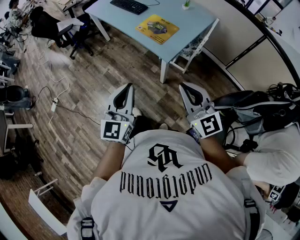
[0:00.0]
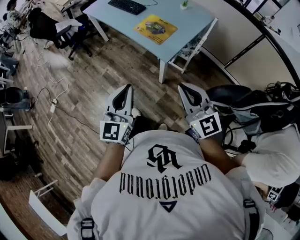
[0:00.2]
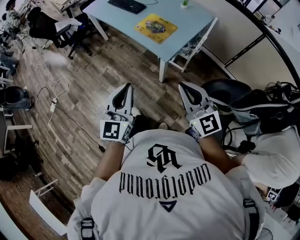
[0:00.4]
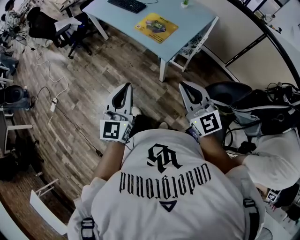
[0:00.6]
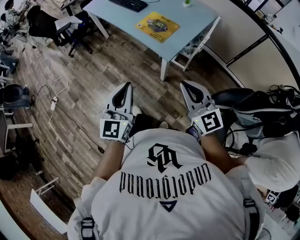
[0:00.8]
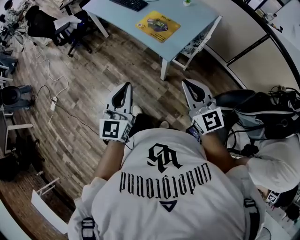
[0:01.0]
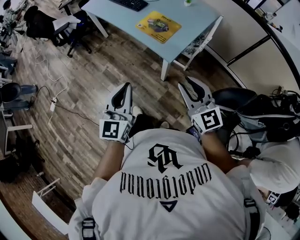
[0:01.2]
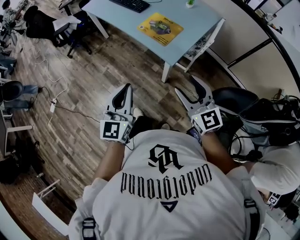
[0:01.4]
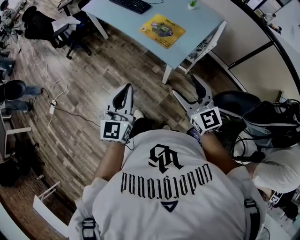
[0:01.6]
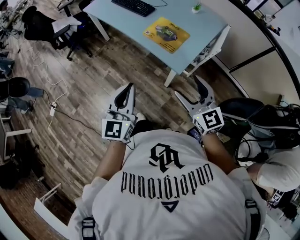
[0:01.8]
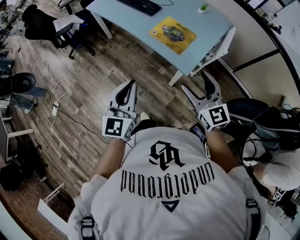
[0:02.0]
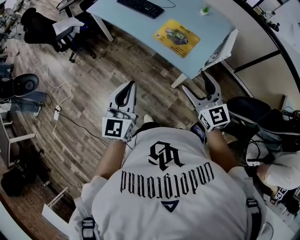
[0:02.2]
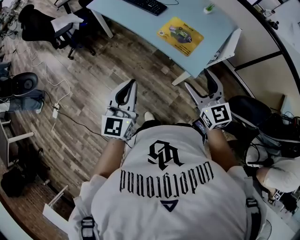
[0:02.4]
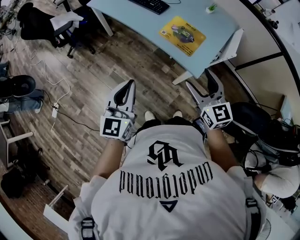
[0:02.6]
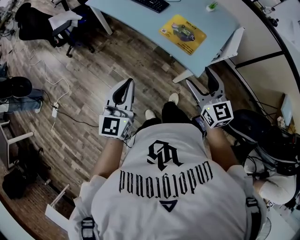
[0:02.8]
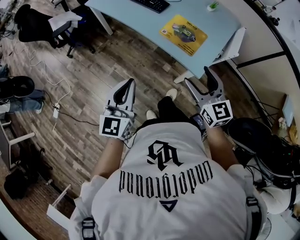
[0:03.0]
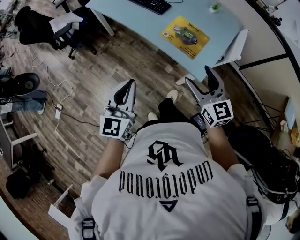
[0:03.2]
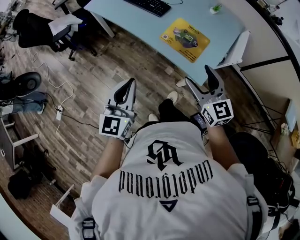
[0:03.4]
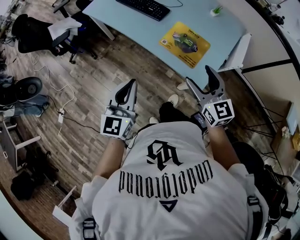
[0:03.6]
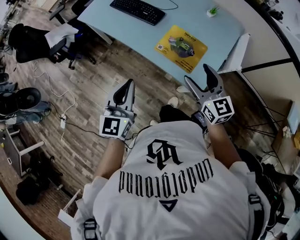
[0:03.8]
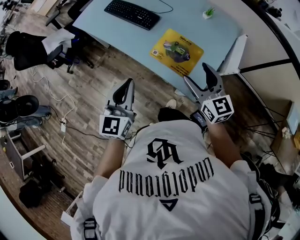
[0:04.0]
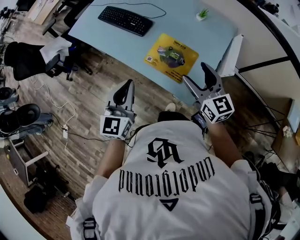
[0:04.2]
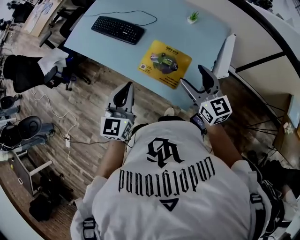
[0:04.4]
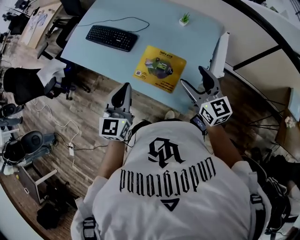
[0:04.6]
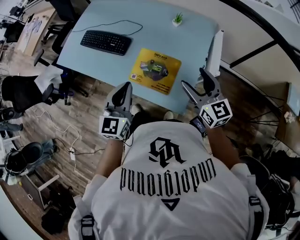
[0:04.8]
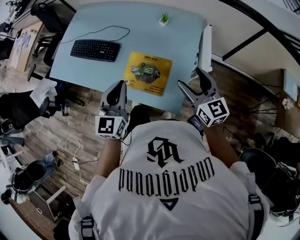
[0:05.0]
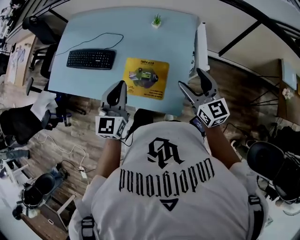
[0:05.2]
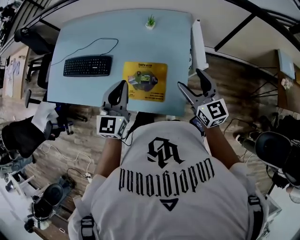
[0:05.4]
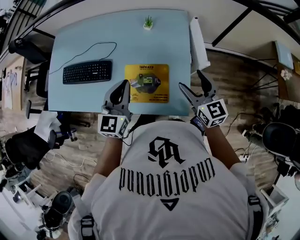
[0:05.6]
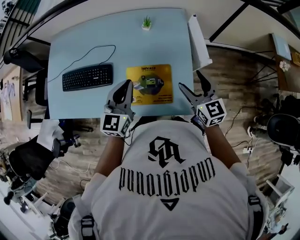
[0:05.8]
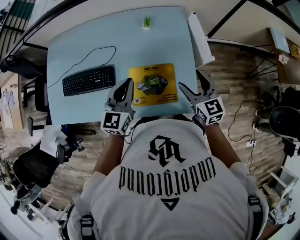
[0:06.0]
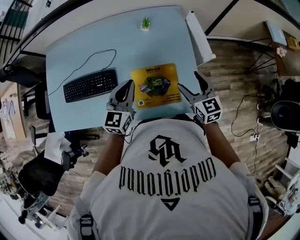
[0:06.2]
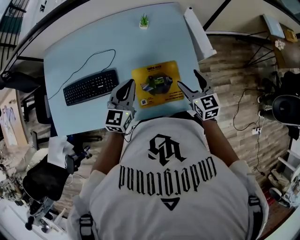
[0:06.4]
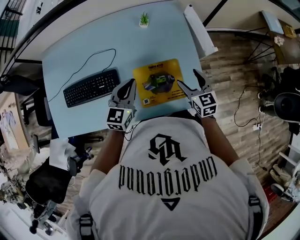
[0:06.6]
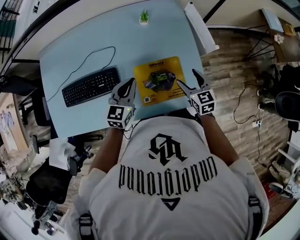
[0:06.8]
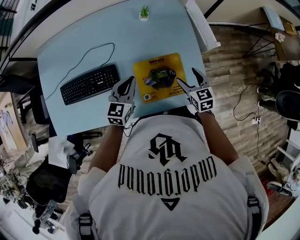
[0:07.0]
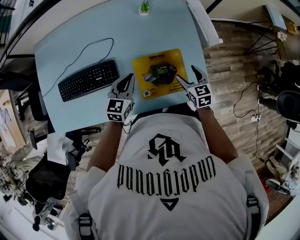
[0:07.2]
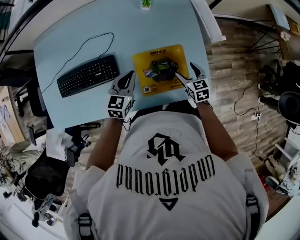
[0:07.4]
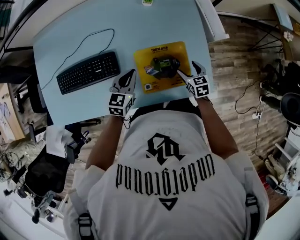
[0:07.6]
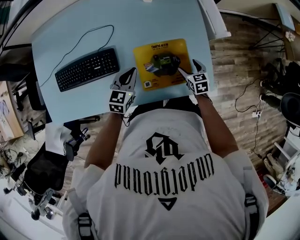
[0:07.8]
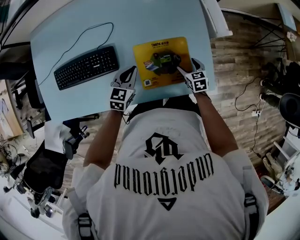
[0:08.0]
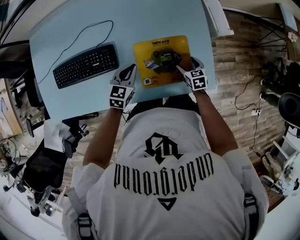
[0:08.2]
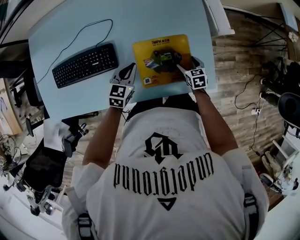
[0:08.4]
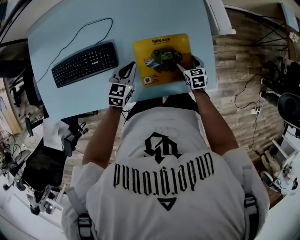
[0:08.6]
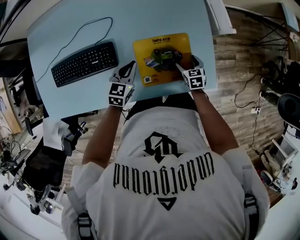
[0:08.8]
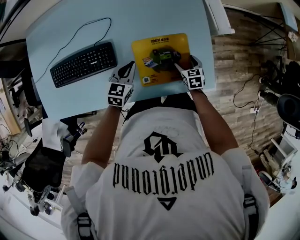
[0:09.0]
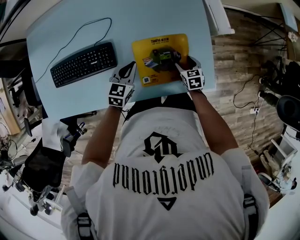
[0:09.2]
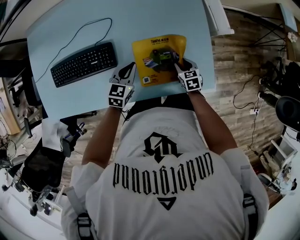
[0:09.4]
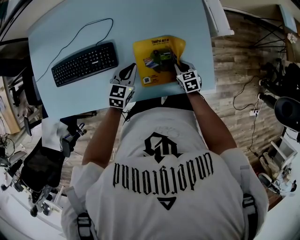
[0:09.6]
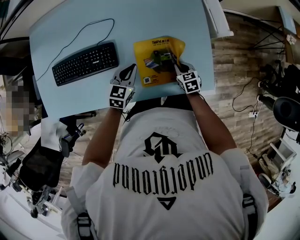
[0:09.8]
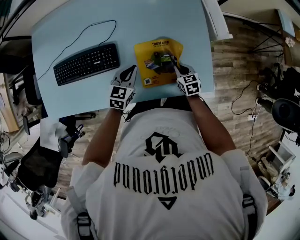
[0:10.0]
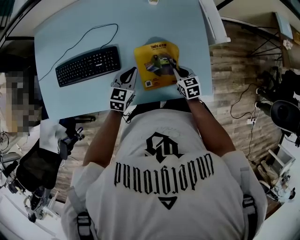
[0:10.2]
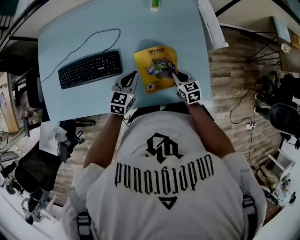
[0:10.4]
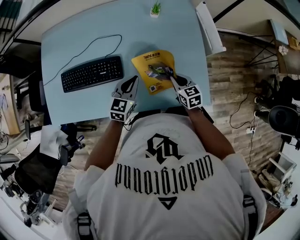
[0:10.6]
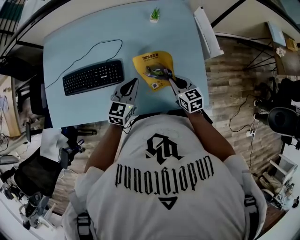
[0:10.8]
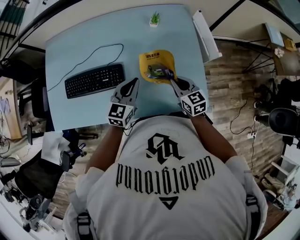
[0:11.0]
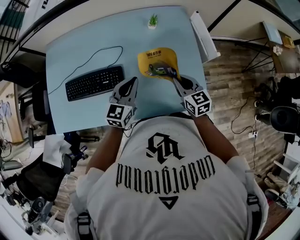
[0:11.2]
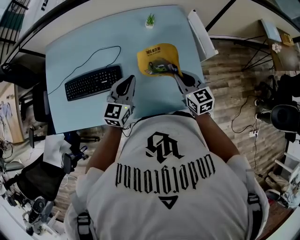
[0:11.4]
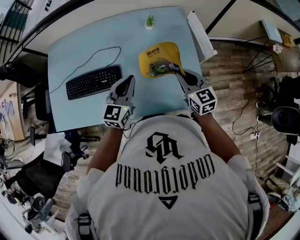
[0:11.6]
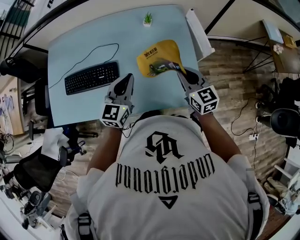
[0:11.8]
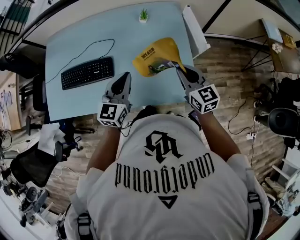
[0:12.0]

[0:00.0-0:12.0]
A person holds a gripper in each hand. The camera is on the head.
0:00.0 to 0:01.6: The left gripper travels forward by about 10 cm. Meanwhile the right gripper moves forward and downward, roughly 15 cm, and opens its fingers.
0:01.6 to 0:03.0: The left gripper travels to the left and forward by about 20 cm. Meanwhile the right gripper goes roughly 20 cm forward and to the left.
0:03.0 to 0:04.4: Both grippers move forward and to the right, about 30 cm.
0:04.4 to 0:06.0: The left gripper ends up roughly 25 cm from where it was, and changes its angle by some 40 degrees. Meanwhile the right gripper shifts by roughly 10 cm, and changes its angle by approximately 40 degrees.
0:06.0 to 0:07.6: Both grippers move downward, some 20 cm. The right gripper turns by about 30 degrees, while the left gripper swivels about 20 degrees.
0:07.6 to 0:09.0: The grippers both shift downward by roughly 5 cm.
0:09.0 to 0:10.4: The right gripper heads upward and to the left, covering approximately 10 cm, and closes its fingers. The left gripper shifts approximately 5 cm upward.
0:10.4 to 0:12.0: The two grippers go approximately 20 cm upward. The right gripper changes its angle by some 30 degrees; the left gripper changes its angle by some 20 degrees.

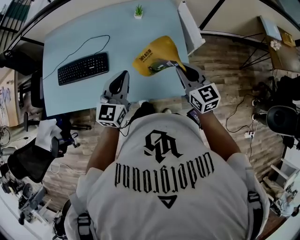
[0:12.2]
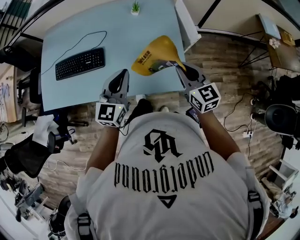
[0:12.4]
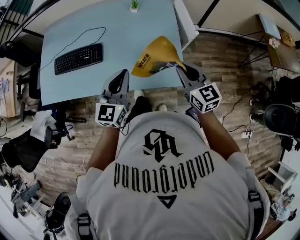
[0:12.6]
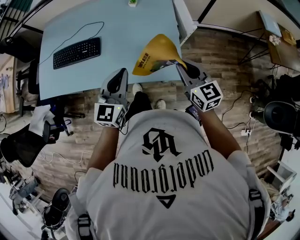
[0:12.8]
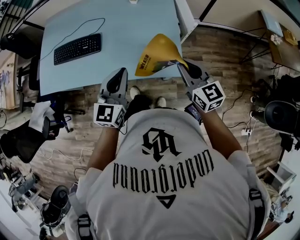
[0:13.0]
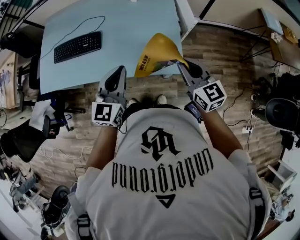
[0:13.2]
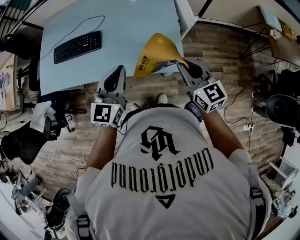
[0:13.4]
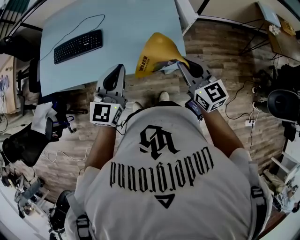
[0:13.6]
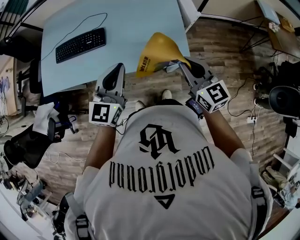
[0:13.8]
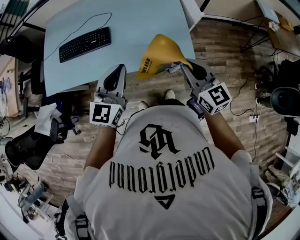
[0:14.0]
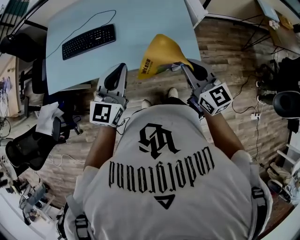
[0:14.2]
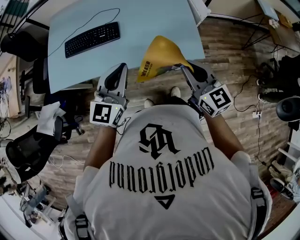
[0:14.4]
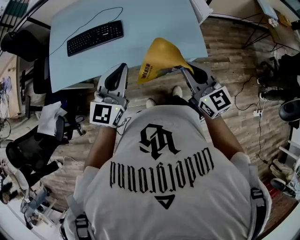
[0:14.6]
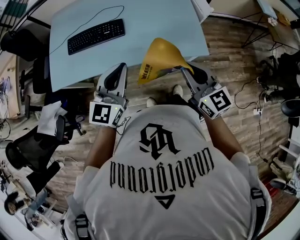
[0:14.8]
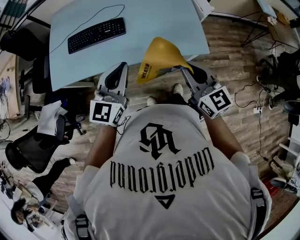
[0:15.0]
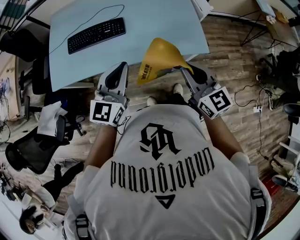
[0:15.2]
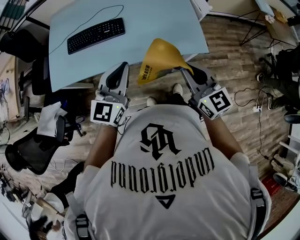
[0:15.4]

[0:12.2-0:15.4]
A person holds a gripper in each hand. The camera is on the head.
0:12.2 to 0:13.8: The grippers both shift backward by approximately 15 cm.
0:13.8 to 0:15.4: The two grippers go roughly 20 cm to the left and backward.

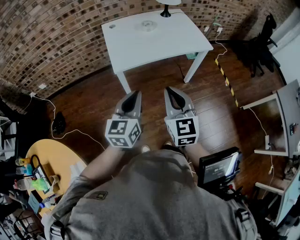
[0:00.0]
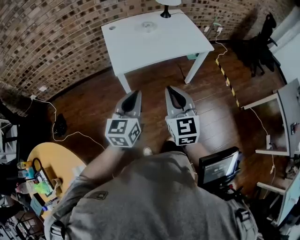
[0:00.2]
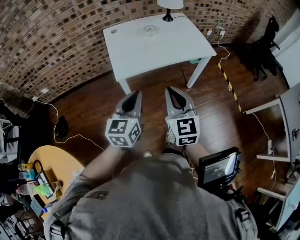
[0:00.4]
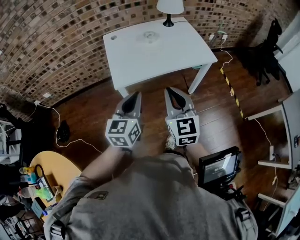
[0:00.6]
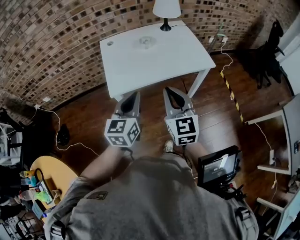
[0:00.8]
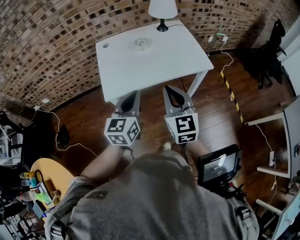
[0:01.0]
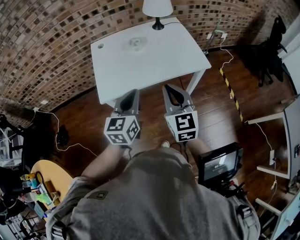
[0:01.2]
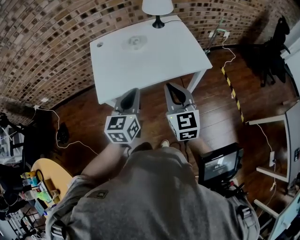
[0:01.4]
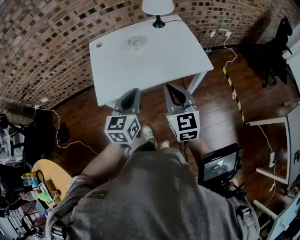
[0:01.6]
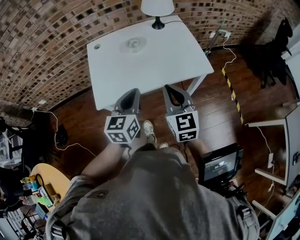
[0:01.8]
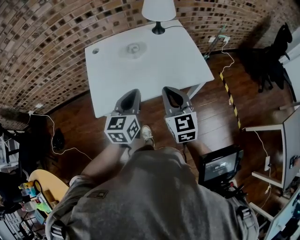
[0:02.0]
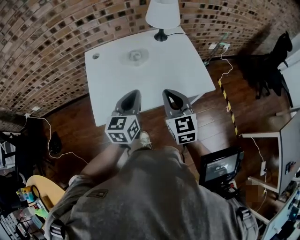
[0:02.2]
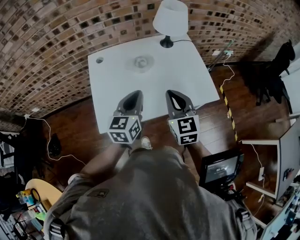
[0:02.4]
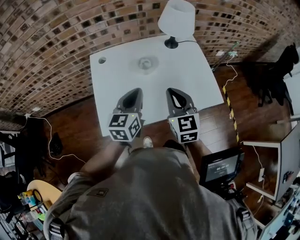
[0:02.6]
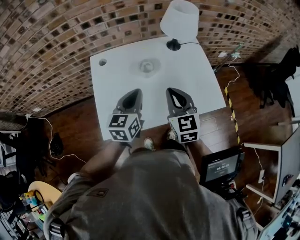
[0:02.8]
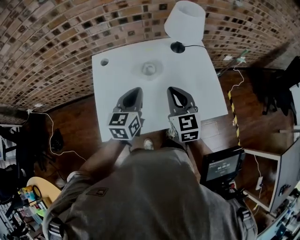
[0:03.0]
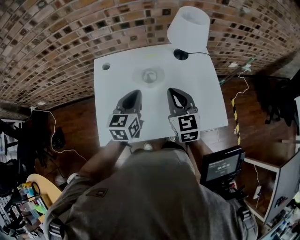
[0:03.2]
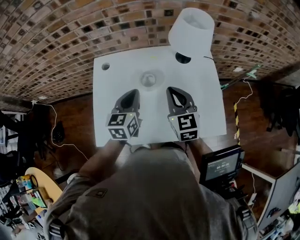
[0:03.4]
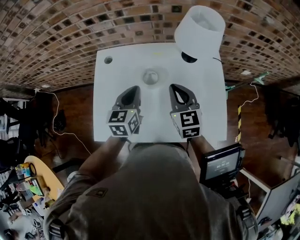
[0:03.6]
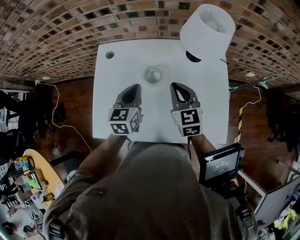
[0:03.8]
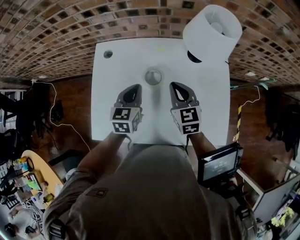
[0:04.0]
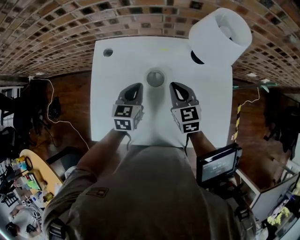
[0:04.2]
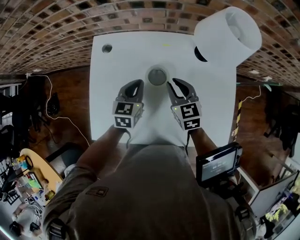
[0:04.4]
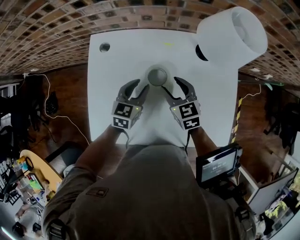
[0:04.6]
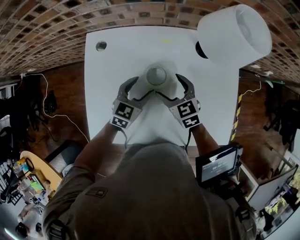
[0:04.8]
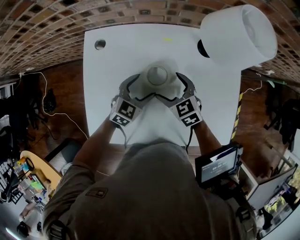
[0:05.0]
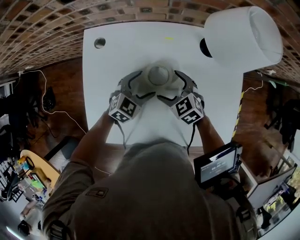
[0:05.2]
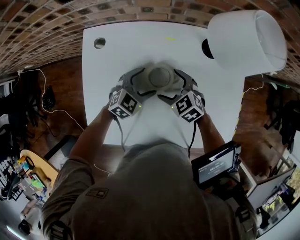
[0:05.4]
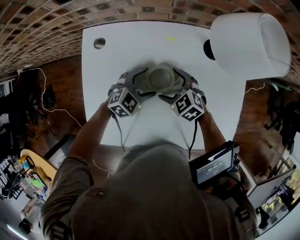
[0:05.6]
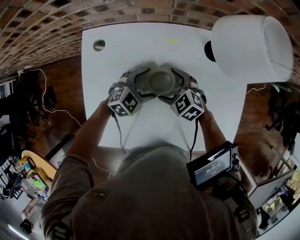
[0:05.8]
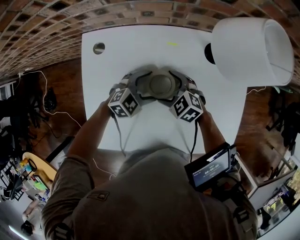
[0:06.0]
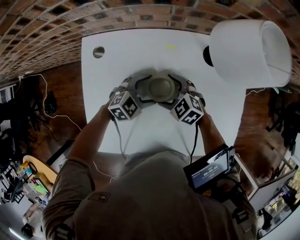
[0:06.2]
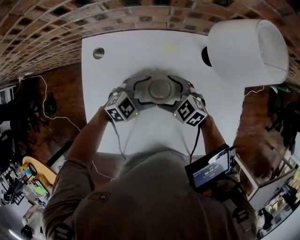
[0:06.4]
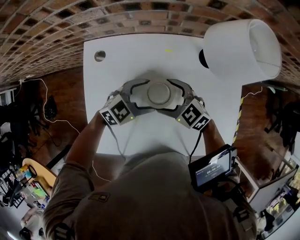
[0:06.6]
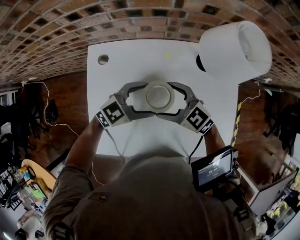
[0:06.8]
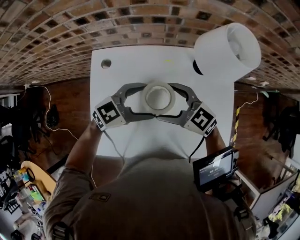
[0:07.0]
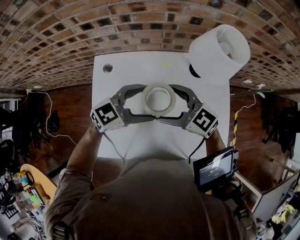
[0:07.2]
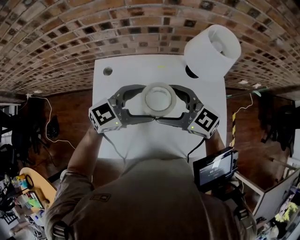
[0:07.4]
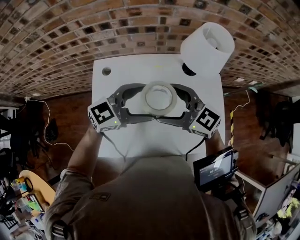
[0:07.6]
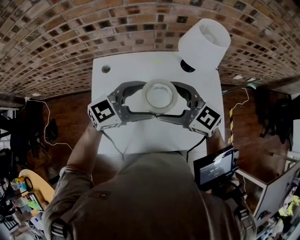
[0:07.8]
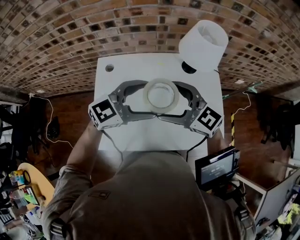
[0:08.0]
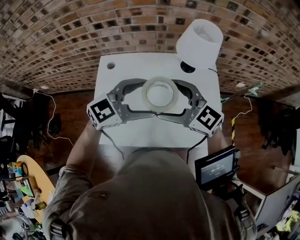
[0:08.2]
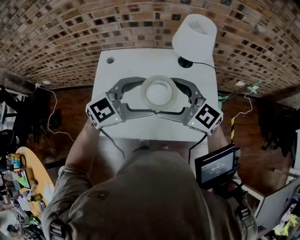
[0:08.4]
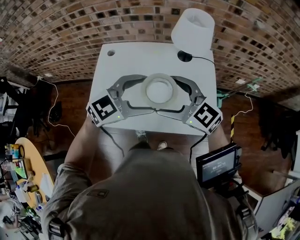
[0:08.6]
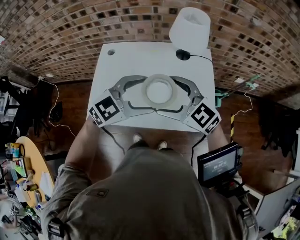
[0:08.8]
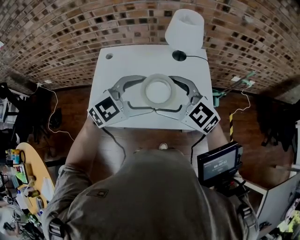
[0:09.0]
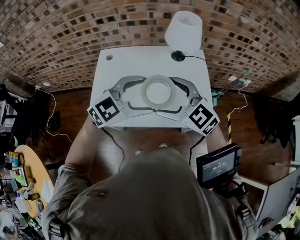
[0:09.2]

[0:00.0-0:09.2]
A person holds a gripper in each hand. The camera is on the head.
0:00.0 to 0:01.6: The grippers both shift forward and to the right by approximately 25 cm.
0:01.6 to 0:03.0: Both grippers travel together forward, approximately 25 cm.
0:03.0 to 0:04.6: Both grippers move downward and forward, roughly 20 cm. The left gripper opens its fingers. The right gripper turns by roughly 30 degrees, and opens its fingers.
0:04.6 to 0:06.2: The two grippers go about 10 cm downward. The right gripper turns by some 40 degrees, and opens. Meanwhile the left gripper rotates approximately 50 degrees, and opens its fingers.
0:06.2 to 0:07.6: The grippers both shift upward by approximately 25 cm. The left gripper tilts its fingers some 30 degrees upward; the right gripper angles its fingers upward, by roughly 30 degrees.
0:07.6 to 0:09.2: The right gripper ends up approximately 20 cm from where it was, while the left gripper ends up roughly 20 cm from where it was, and changes its angle by roughly 30 degrees.
